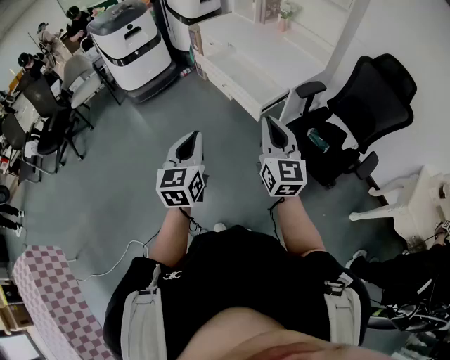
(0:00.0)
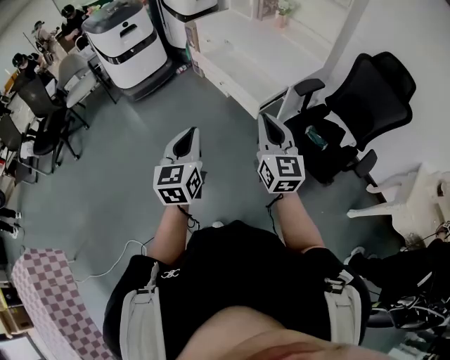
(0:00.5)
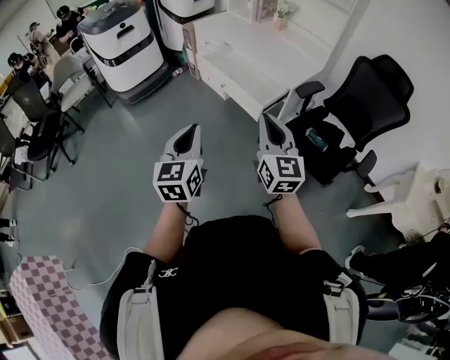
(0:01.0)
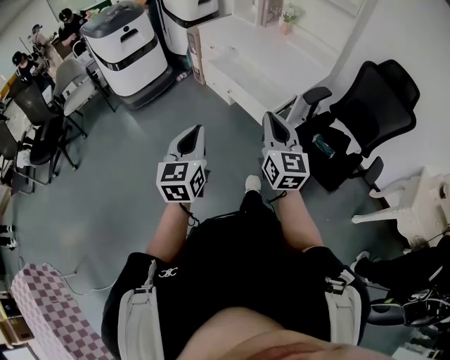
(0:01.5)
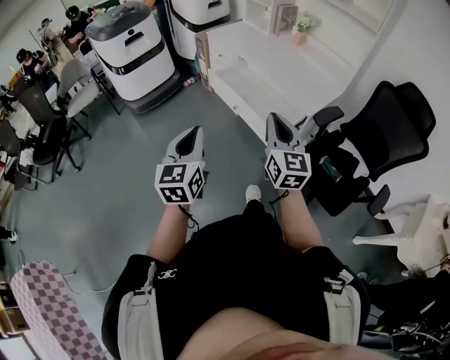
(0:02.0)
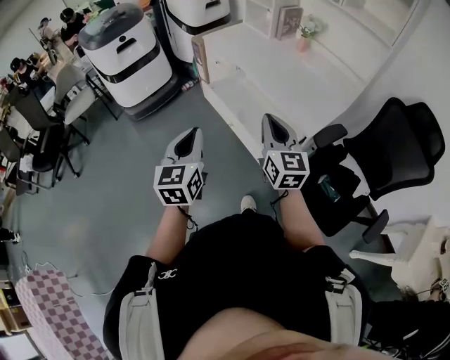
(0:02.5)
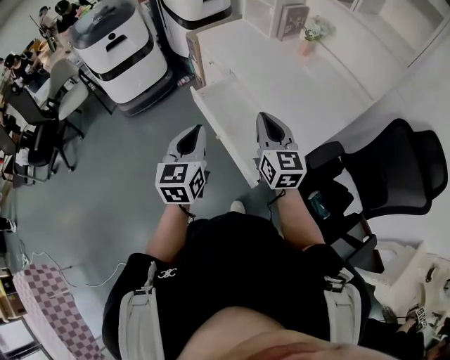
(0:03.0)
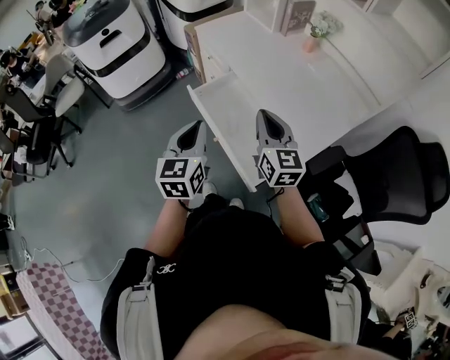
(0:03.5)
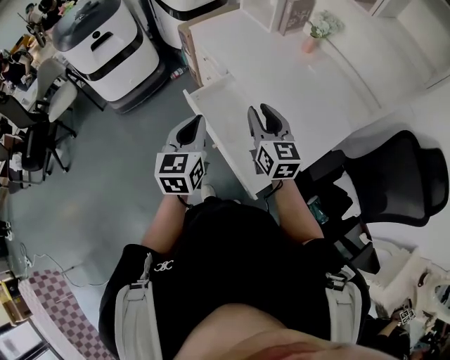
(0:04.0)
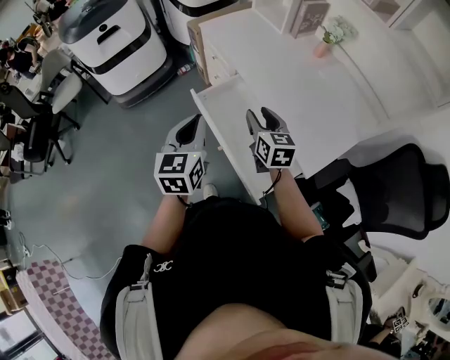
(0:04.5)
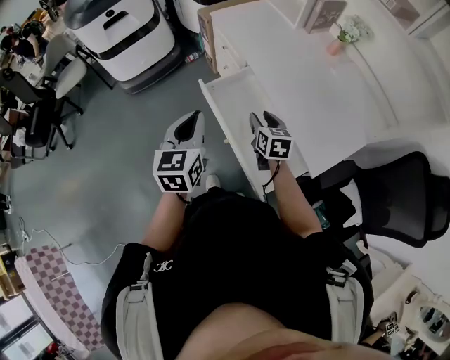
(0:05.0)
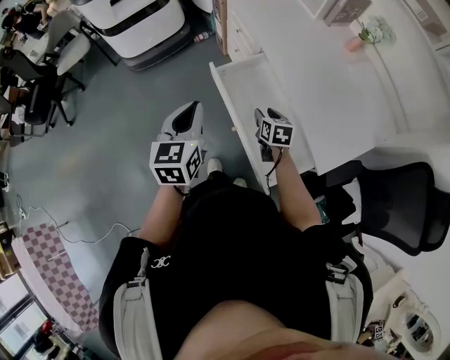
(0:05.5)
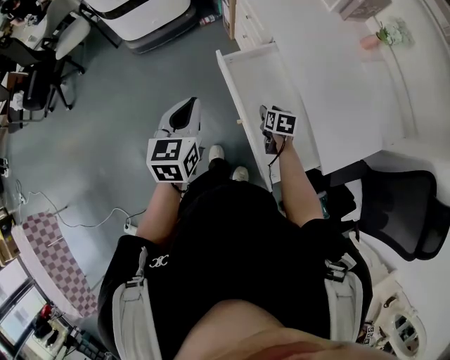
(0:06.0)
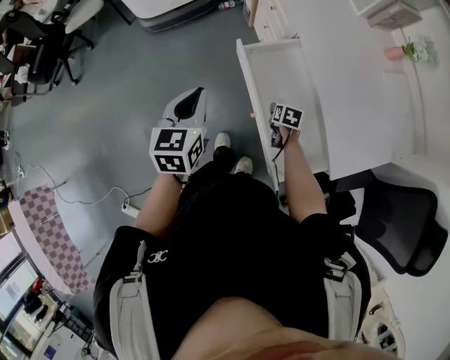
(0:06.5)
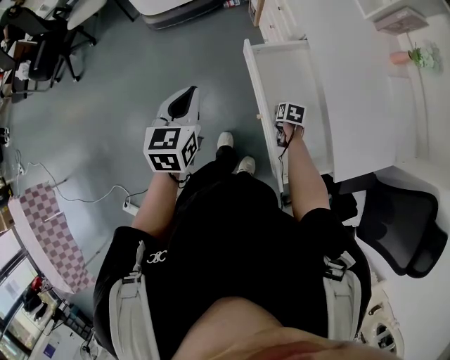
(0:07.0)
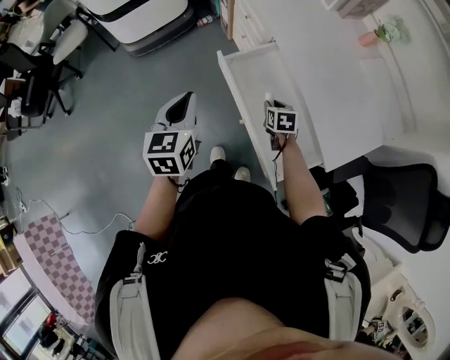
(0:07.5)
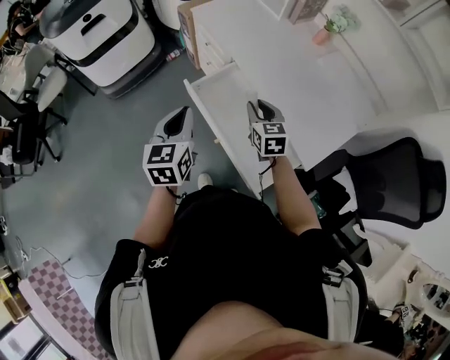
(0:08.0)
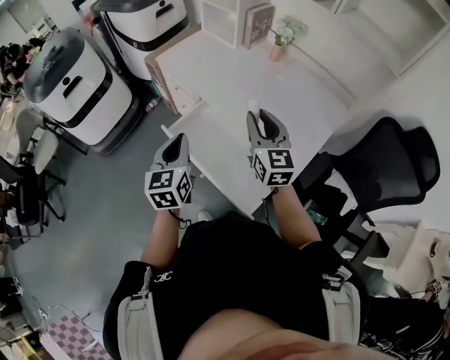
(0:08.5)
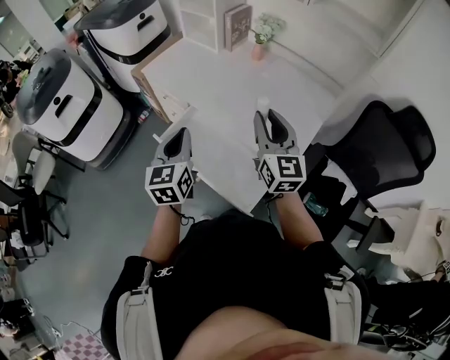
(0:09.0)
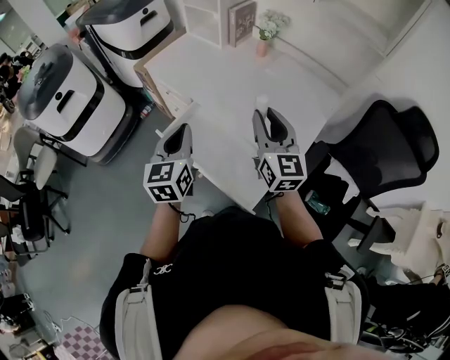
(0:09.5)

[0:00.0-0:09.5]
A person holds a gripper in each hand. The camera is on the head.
0:00.0 to 0:02.0: Both grippers travel together forward, some 20 cm.
0:02.0 to 0:04.0: The pair of grippers is taken forward, approximately 40 cm. The right gripper opens up.
0:04.0 to 0:05.5: The right gripper heads downward, covering some 25 cm, and tips its fingers downward by about 40 degrees; the left gripper is displaced to the left by roughly 10 cm.
0:05.5 to 0:07.5: The left gripper goes some 5 cm to the left; the right gripper moves roughly 15 cm downward and comes back.
0:07.5 to 0:09.5: The left gripper changes place by about 20 cm, and changes its angle by about 30 degrees; the right gripper goes roughly 35 cm upward, and tilts its fingers roughly 60 degrees upward.

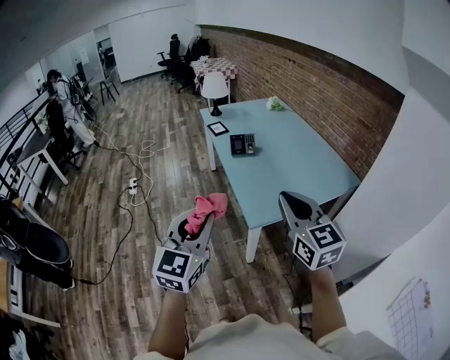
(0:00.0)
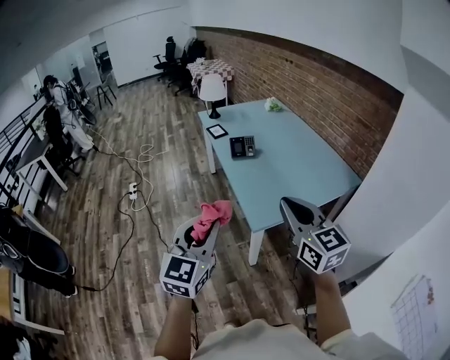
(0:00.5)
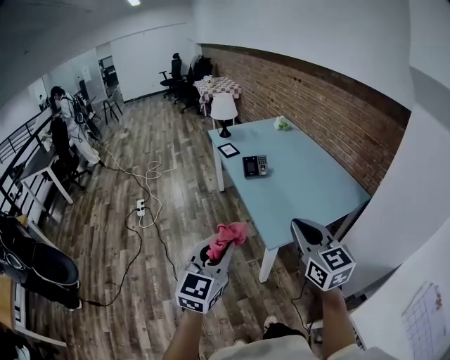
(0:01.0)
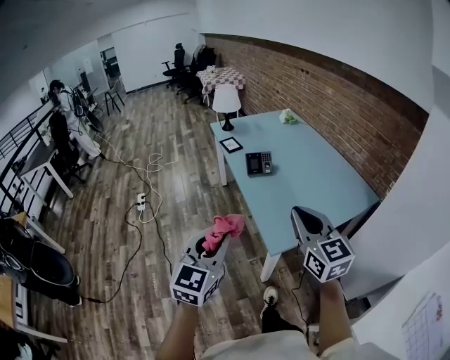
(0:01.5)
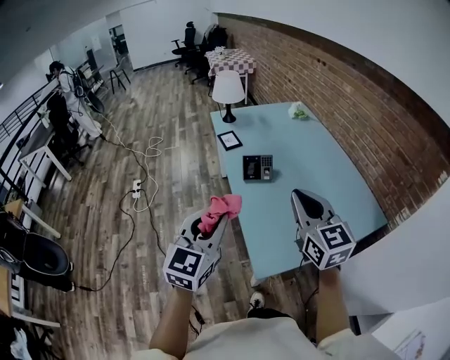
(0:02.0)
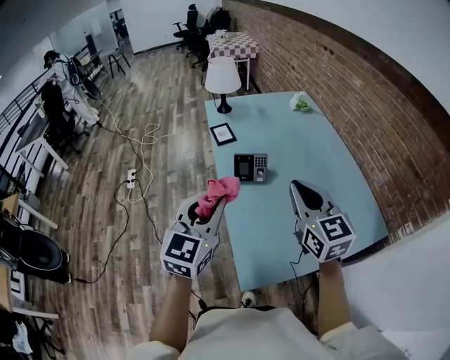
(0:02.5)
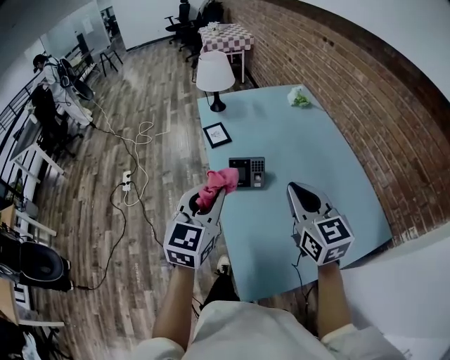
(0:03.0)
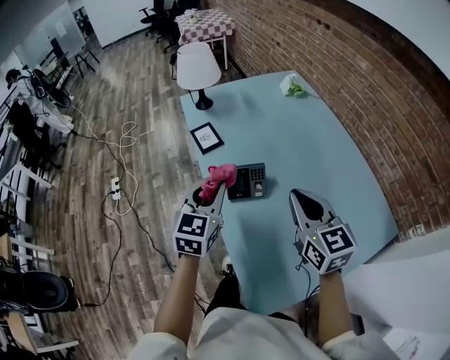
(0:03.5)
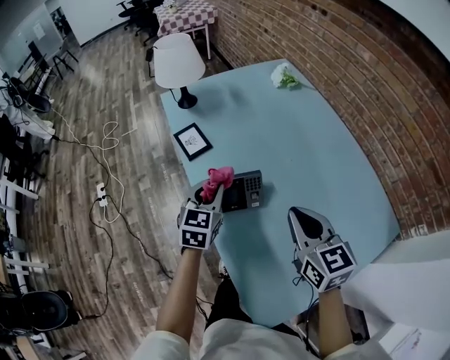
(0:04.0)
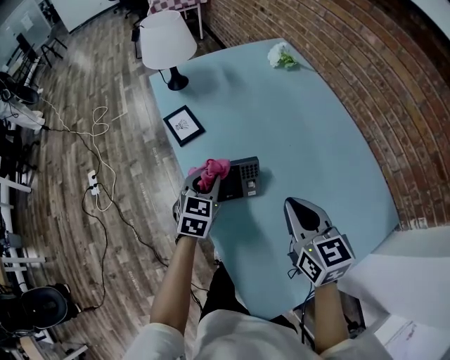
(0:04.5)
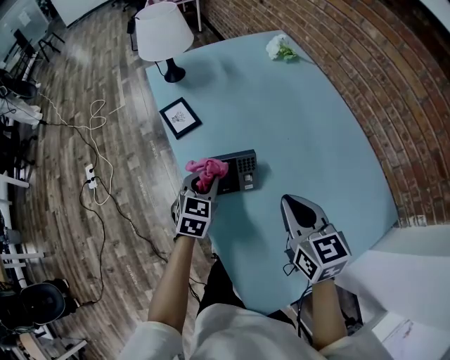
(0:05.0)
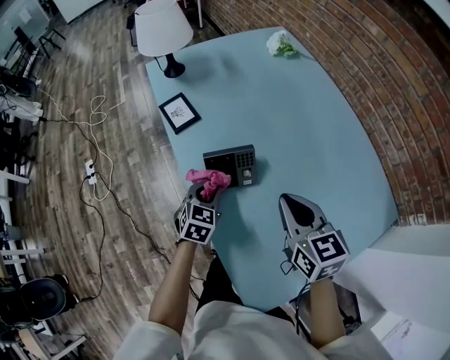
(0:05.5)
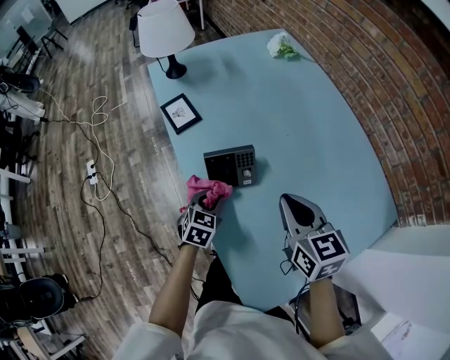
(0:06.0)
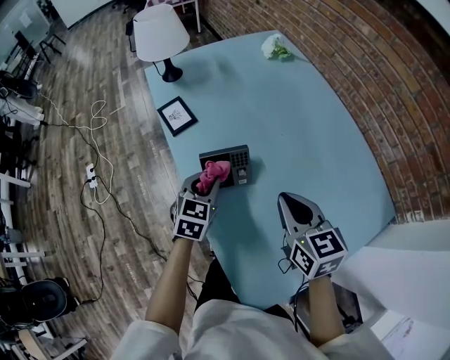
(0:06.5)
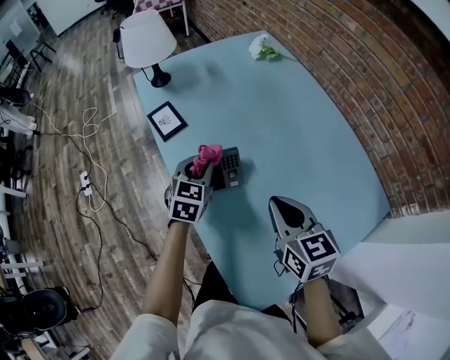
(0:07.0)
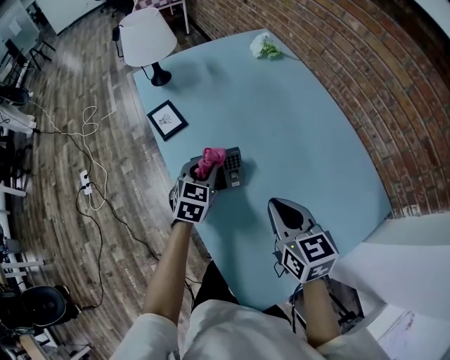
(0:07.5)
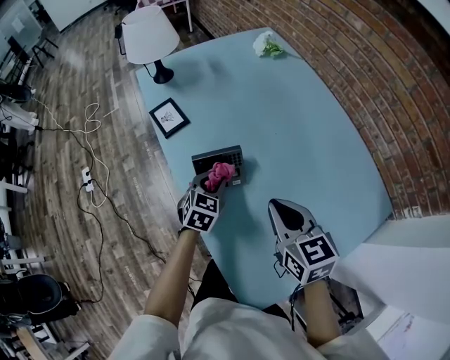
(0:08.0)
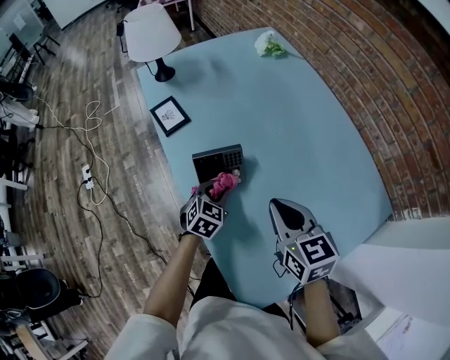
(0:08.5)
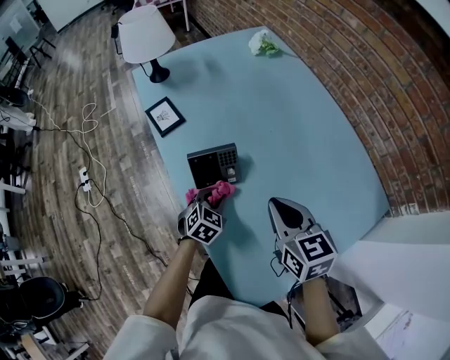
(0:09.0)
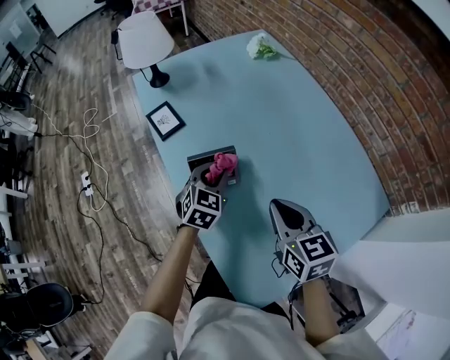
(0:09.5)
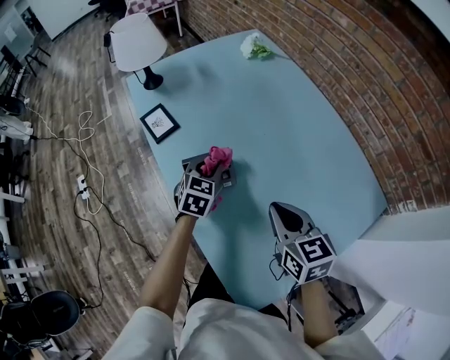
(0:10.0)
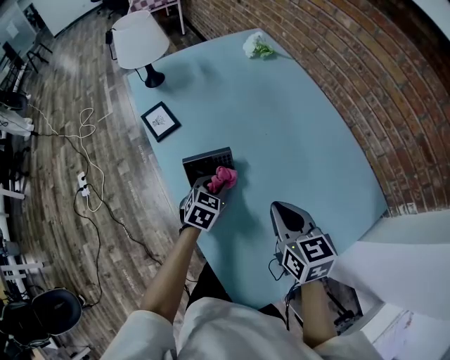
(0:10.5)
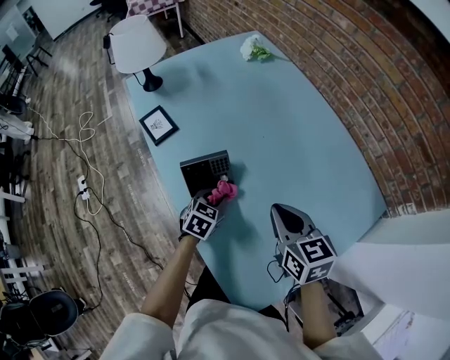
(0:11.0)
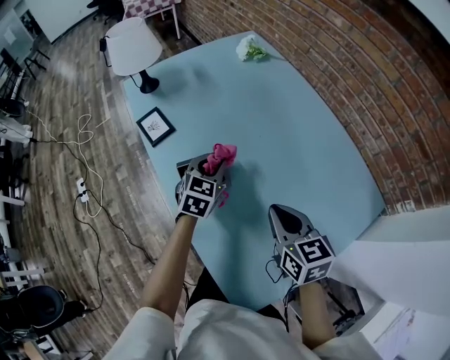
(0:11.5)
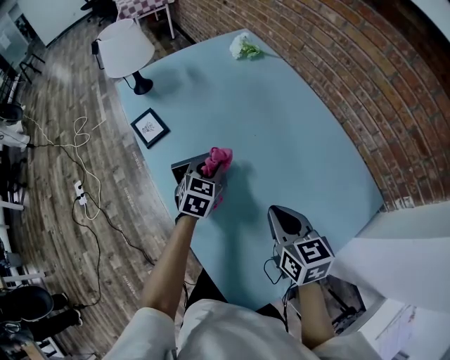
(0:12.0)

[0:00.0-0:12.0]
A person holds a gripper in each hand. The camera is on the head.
0:00.0 to 0:02.0: Both grippers move forward, roughly 30 cm.
0:02.0 to 0:04.0: The left gripper goes some 50 cm forward and downward, and swivels roughly 20 degrees; the right gripper heads forward and downward, covering approximately 30 cm, and swivels some 20 degrees.
0:04.0 to 0:06.0: The left gripper shifts roughly 15 cm downward and backward, and changes its angle by approximately 20 degrees.
0:06.0 to 0:08.0: The left gripper goes roughly 5 cm forward.
0:08.0 to 0:10.0: The left gripper travels downward and back again, roughly 5 cm each way.
0:10.0 to 0:12.0: The left gripper travels downward and back again, roughly 10 cm each way.

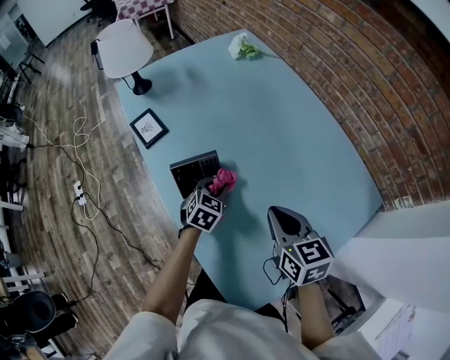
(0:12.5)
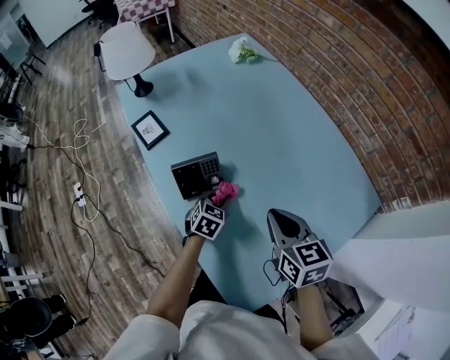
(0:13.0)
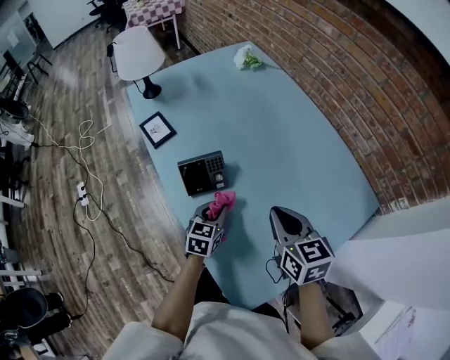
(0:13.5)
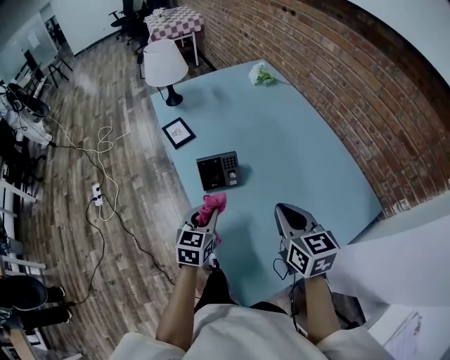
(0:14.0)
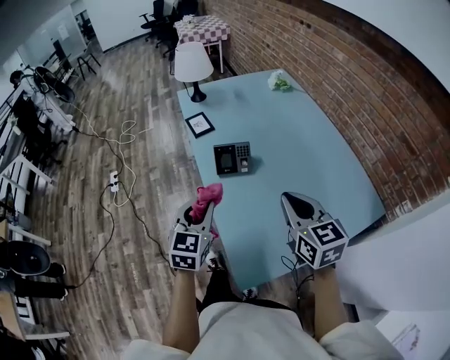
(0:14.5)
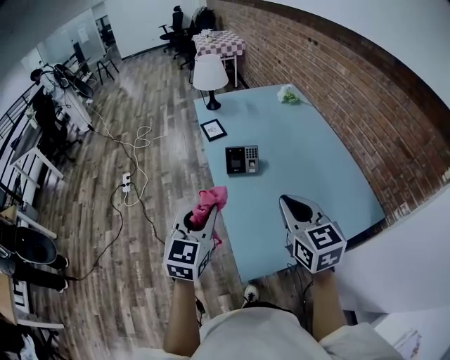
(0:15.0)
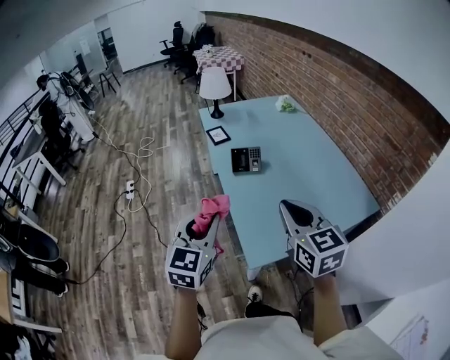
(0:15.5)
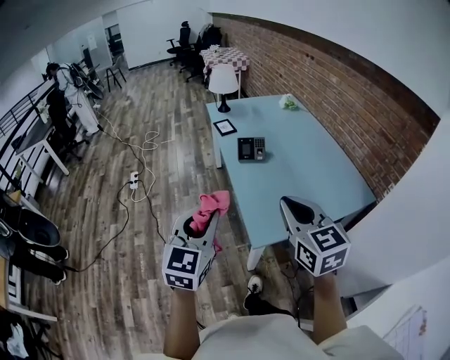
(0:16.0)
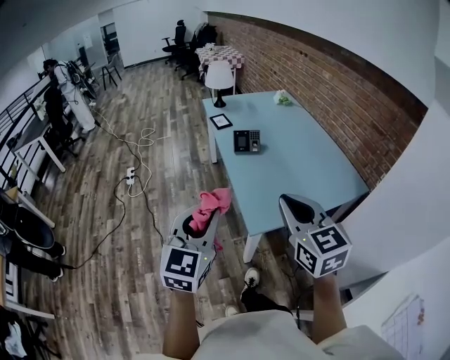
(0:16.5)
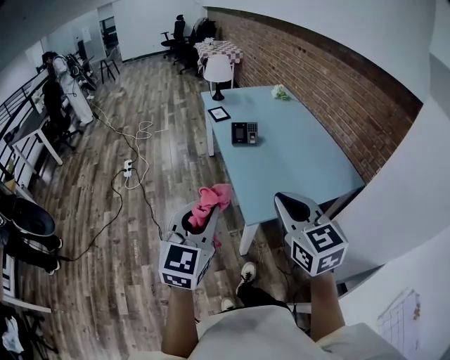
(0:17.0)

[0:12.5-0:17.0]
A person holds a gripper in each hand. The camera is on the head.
0:12.5 to 0:14.5: The right gripper is displaced backward and upward by about 15 cm, and changes its angle by approximately 20 degrees, while the left gripper moves backward, upward and to the left, approximately 35 cm, and swivels some 40 degrees.
0:14.5 to 0:17.0: The grippers both shift backward by roughly 35 cm.

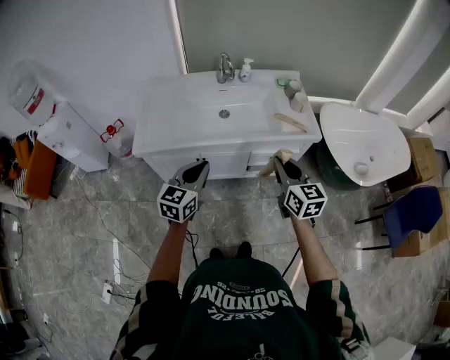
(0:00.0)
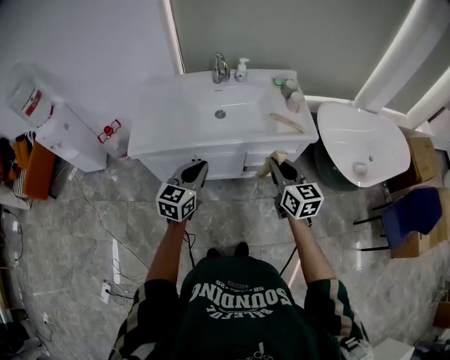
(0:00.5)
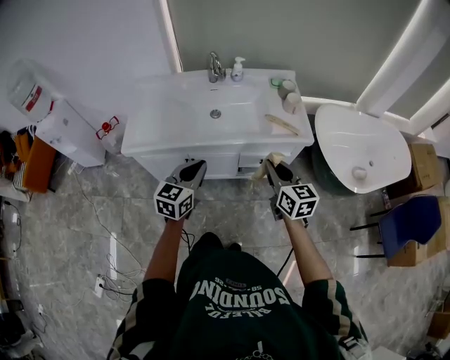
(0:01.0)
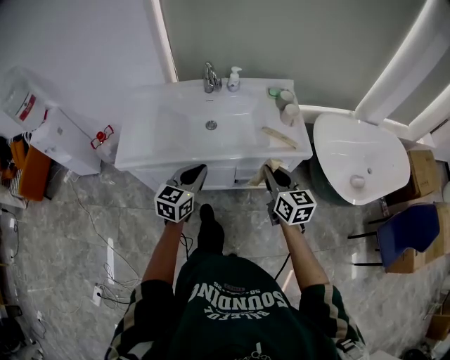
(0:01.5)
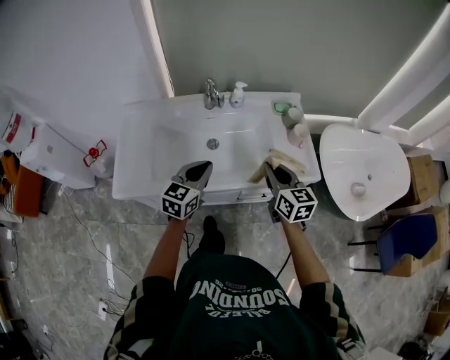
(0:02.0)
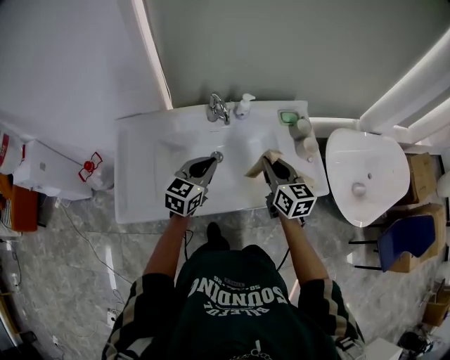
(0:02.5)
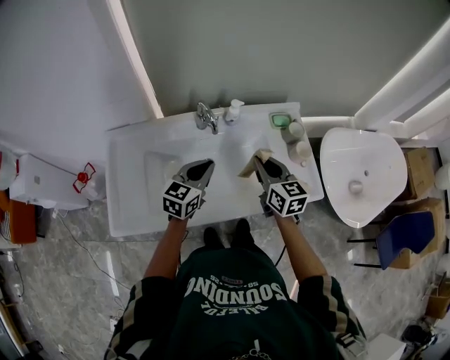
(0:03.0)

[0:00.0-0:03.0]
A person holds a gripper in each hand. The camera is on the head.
0:00.0 to 0:01.5: The grippers both shift forward and to the right by about 10 cm.
0:01.5 to 0:03.0: Both grippers travel together forward, approximately 30 cm.
